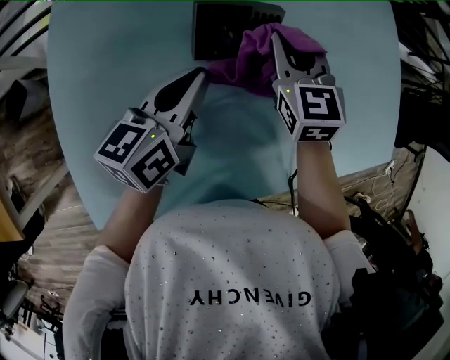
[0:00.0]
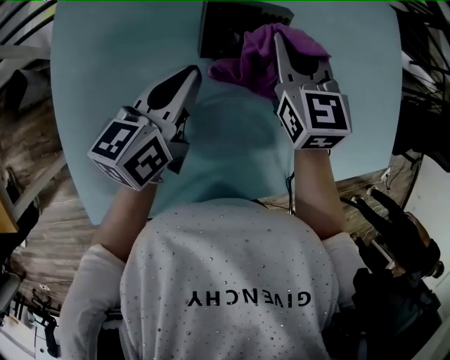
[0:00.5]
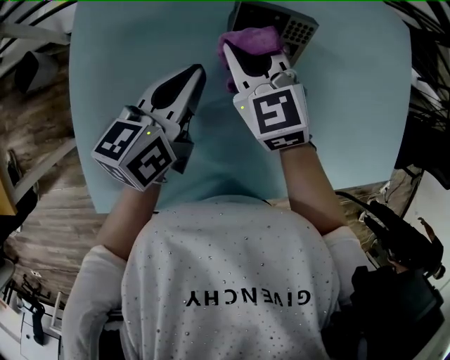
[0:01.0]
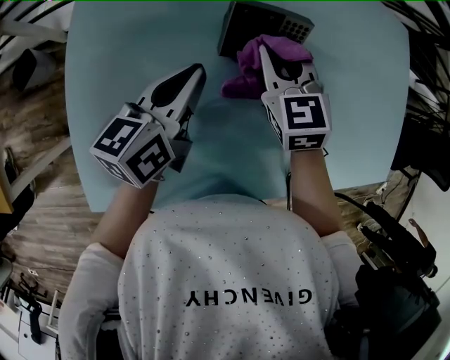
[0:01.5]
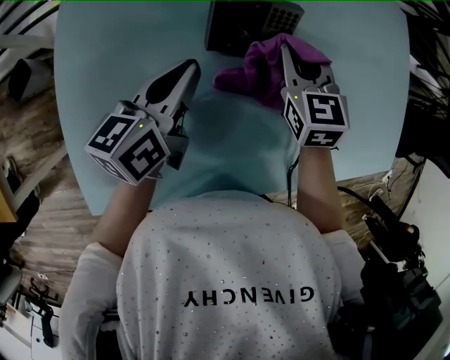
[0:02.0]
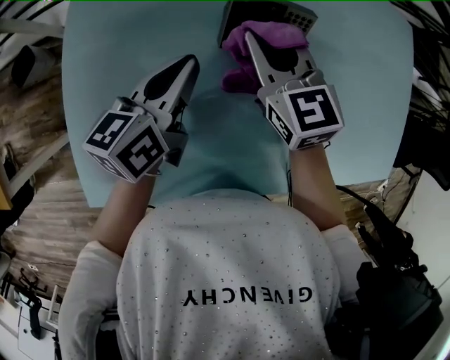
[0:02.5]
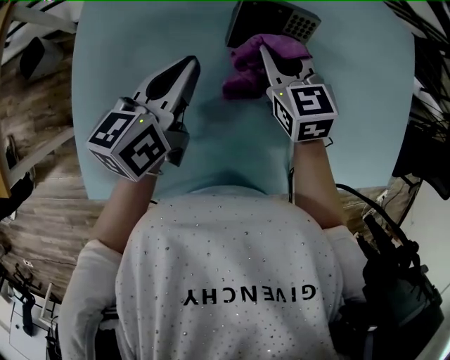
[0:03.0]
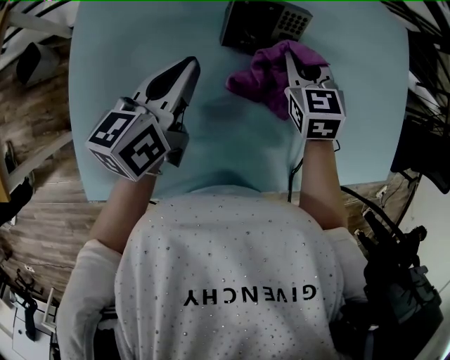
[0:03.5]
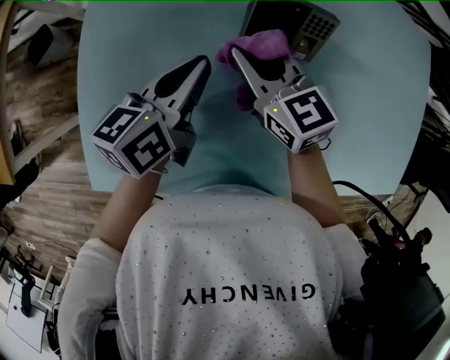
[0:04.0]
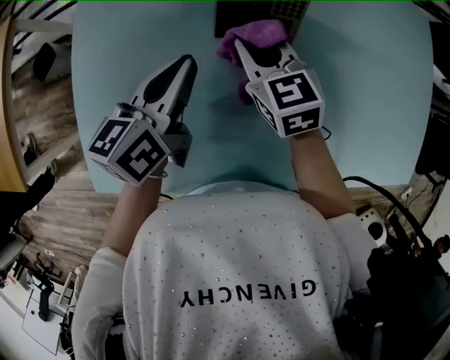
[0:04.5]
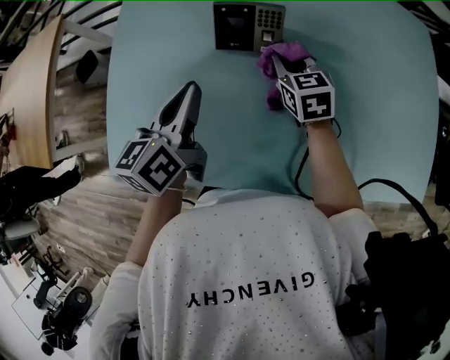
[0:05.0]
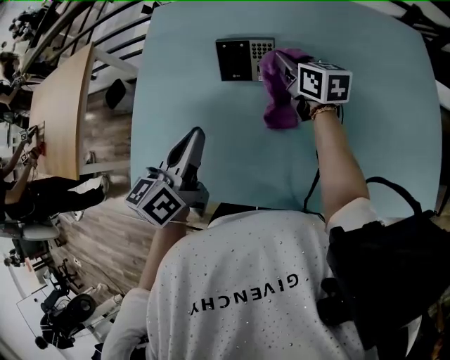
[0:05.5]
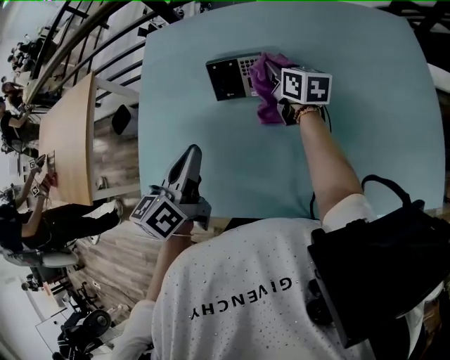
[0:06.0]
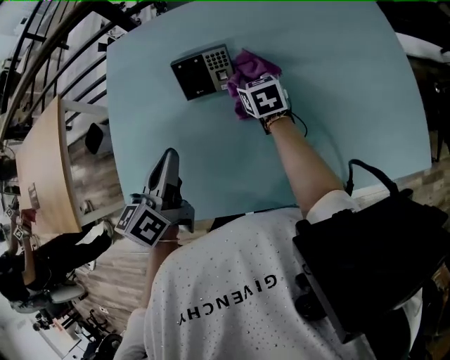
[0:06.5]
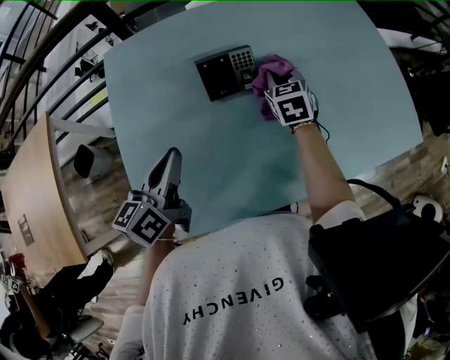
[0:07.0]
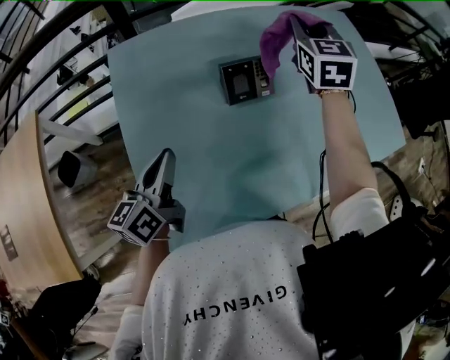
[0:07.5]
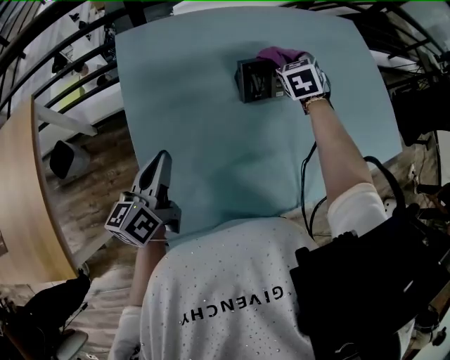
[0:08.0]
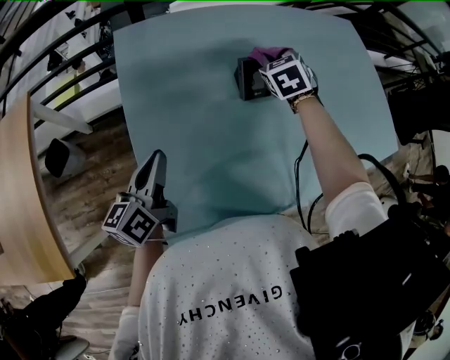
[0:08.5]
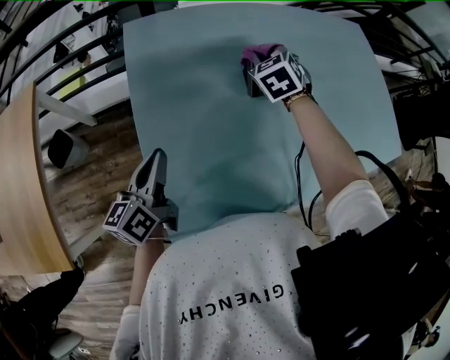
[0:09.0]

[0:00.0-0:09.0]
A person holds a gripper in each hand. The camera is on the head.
0:00.0 to 0:02.0: The right gripper reaches roughly 15 cm to the left, then returns.
0:02.0 to 0:04.5: The right gripper goes left and right, about 10 cm each way, reversing 2 times, and changes its angle by roughly 20 degrees.
0:04.5 to 0:07.0: The right gripper moves up and down over approximately 10 cm, changing direction 2 times, and changes its angle by about 30 degrees; the left gripper changes place by some 10 cm.
0:07.0 to 0:09.0: Both grippers move to the left, roughly 20 cm. The right gripper goes upward and returns, some 25 cm each way, and rotates about 20 degrees.

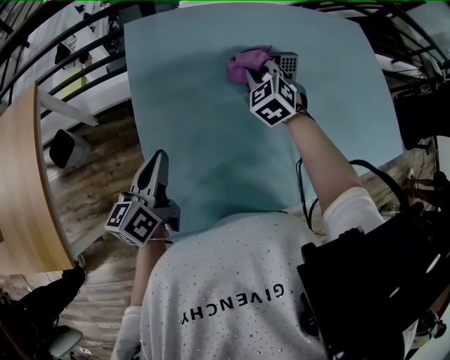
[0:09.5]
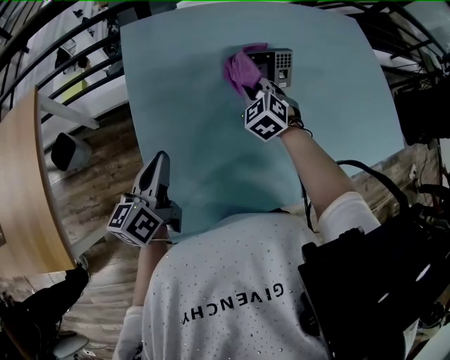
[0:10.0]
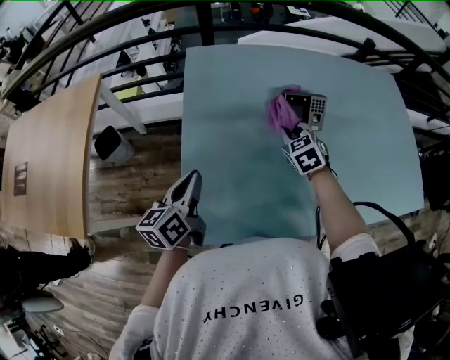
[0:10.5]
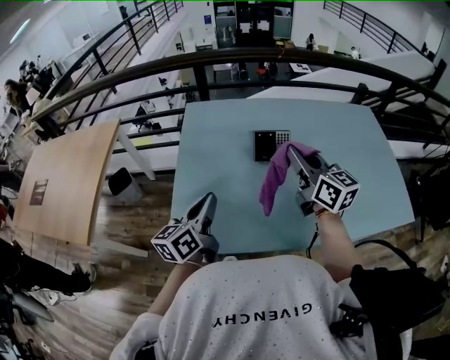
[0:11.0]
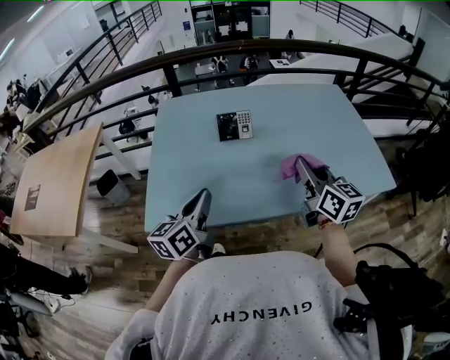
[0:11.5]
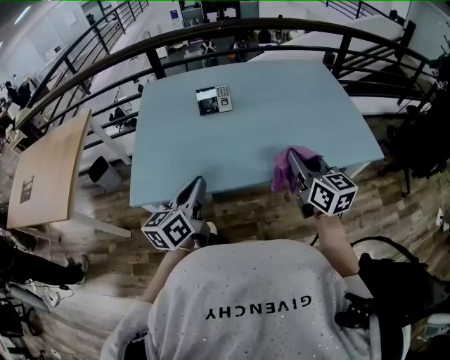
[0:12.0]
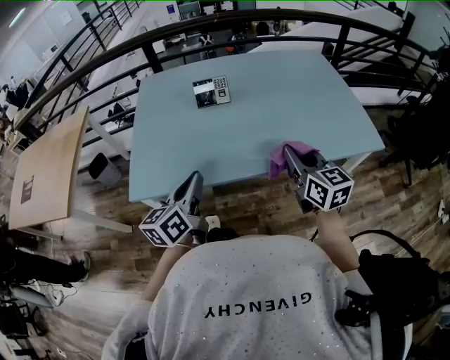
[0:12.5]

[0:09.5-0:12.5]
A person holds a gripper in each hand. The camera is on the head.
0:09.5 to 0:11.0: The right gripper is displaced upward, backward and to the right by about 30 cm, and angles its fingers upward, by some 40 degrees, while the left gripper heads to the right, upward and backward, covering some 20 cm.
0:11.0 to 0:12.5: Both grippers travel together backward and to the right, roughly 25 cm.

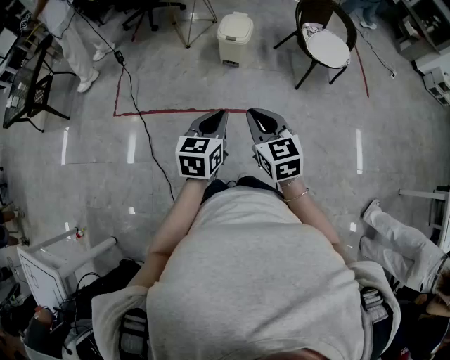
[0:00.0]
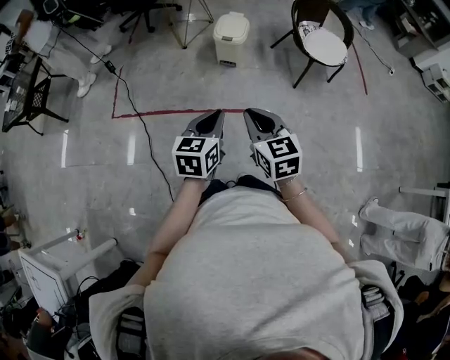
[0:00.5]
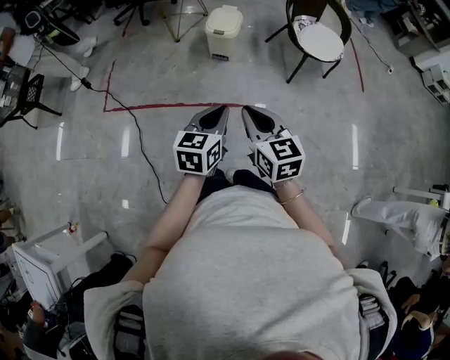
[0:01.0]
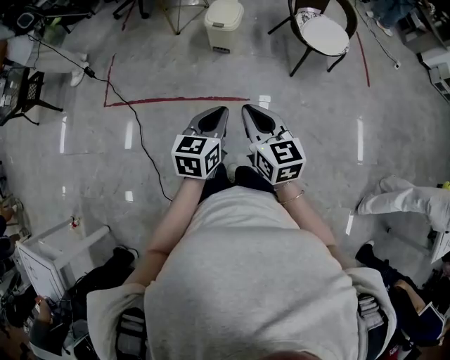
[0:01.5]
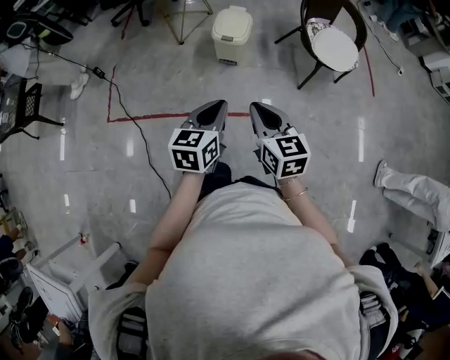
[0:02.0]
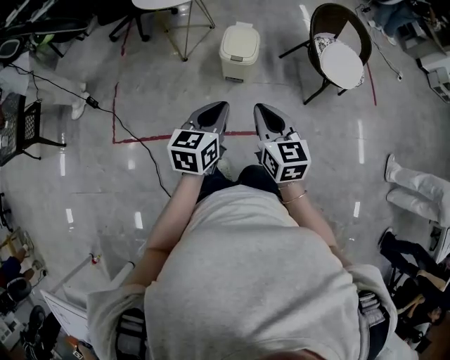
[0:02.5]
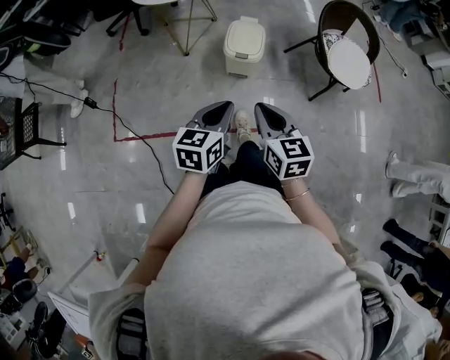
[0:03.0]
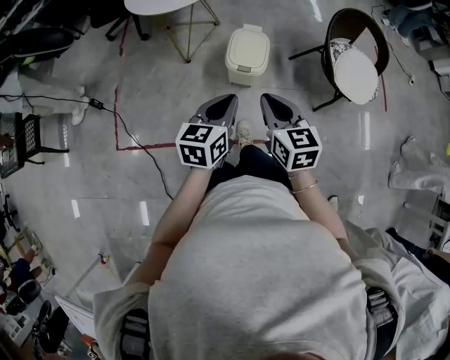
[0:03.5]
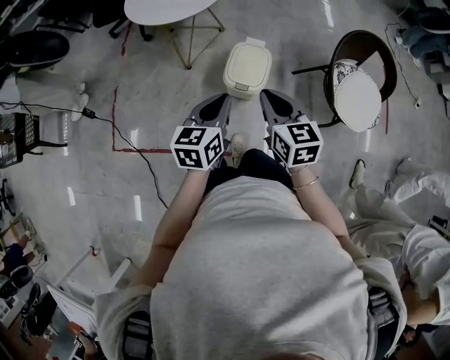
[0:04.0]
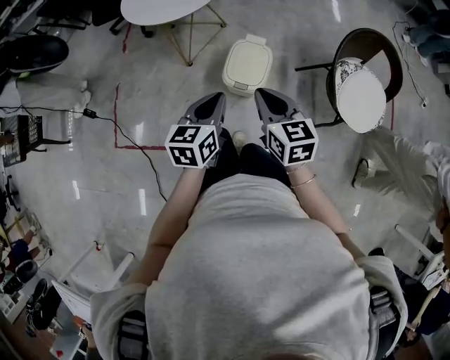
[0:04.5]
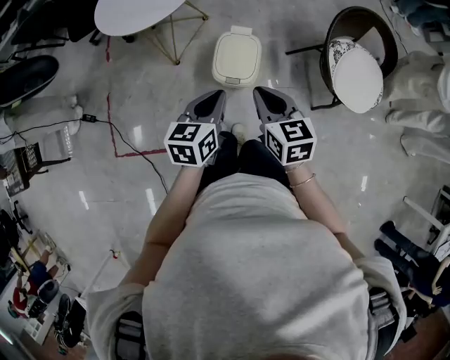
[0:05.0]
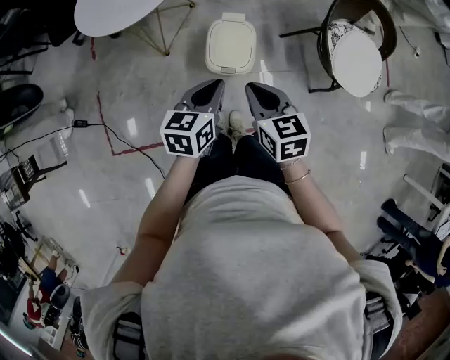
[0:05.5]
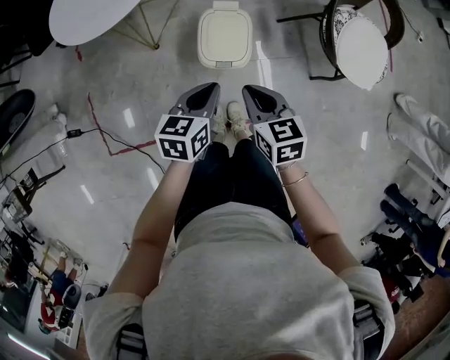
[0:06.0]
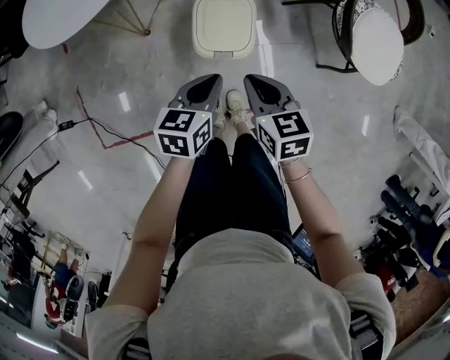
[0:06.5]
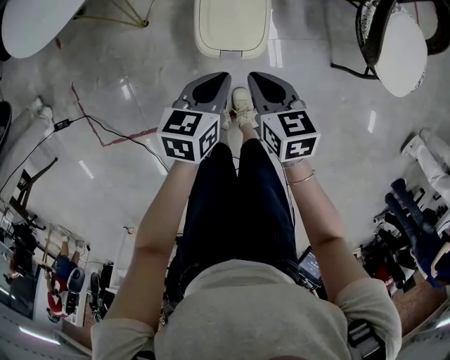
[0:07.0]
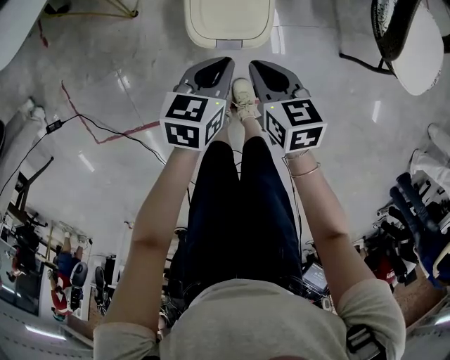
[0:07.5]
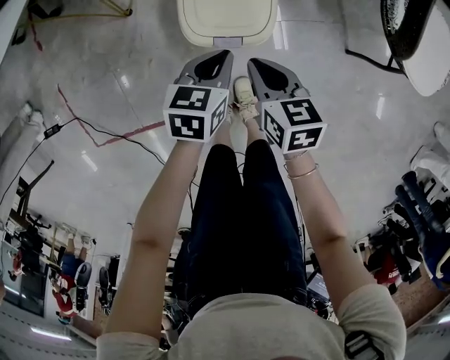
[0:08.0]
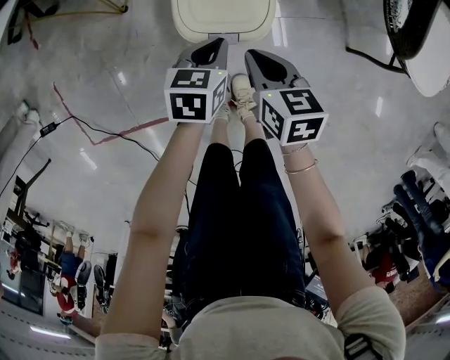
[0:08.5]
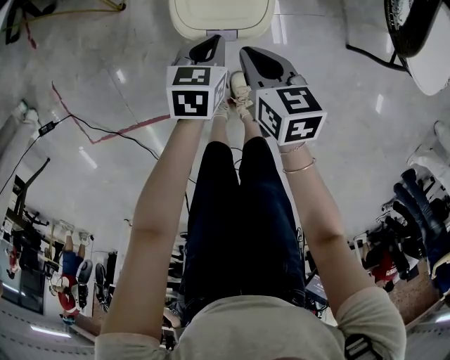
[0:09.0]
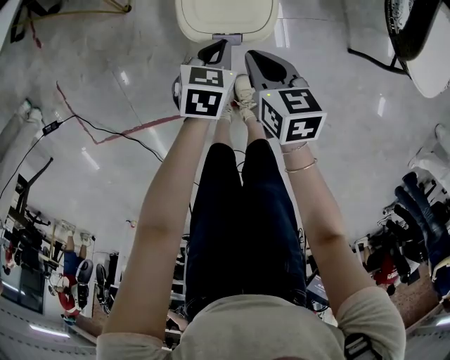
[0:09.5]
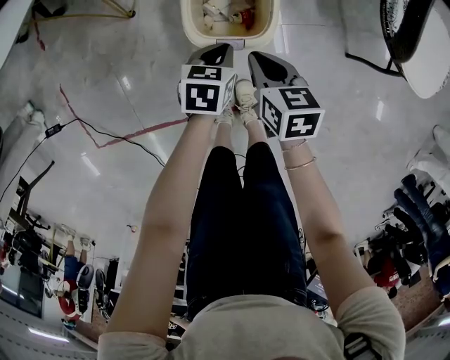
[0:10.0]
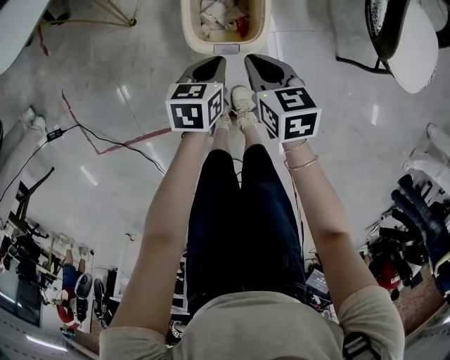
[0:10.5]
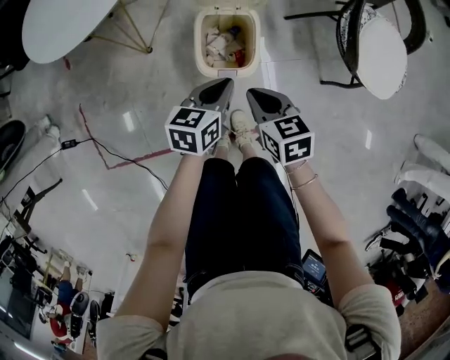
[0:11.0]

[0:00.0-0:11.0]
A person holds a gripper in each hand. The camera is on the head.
0:00.0 to 0:02.0: The grippers both shift forward by roughly 15 cm.
0:02.0 to 0:03.5: The grippers both shift forward by approximately 25 cm.
0:03.5 to 0:05.5: Both grippers move forward, approximately 20 cm.
0:05.5 to 0:07.5: The grippers both shift downward by roughly 30 cm.
0:07.5 to 0:09.0: The left gripper heads downward, covering some 10 cm.
0:09.0 to 0:11.0: Both grippers travel together upward, approximately 15 cm.

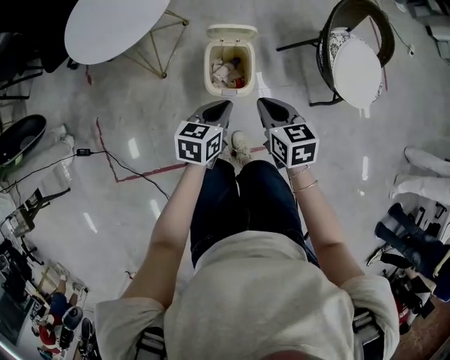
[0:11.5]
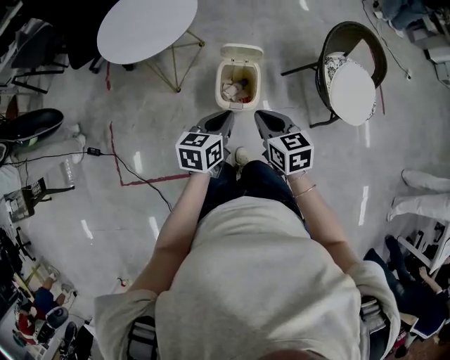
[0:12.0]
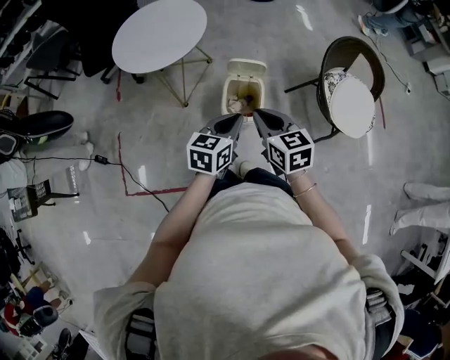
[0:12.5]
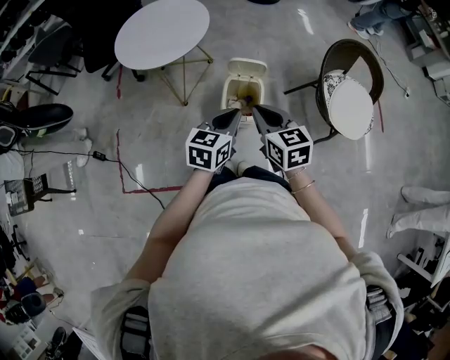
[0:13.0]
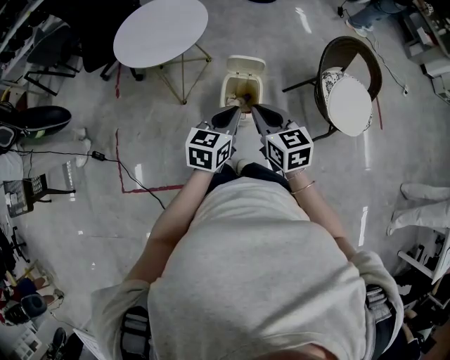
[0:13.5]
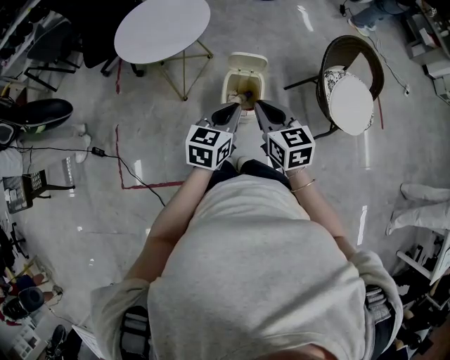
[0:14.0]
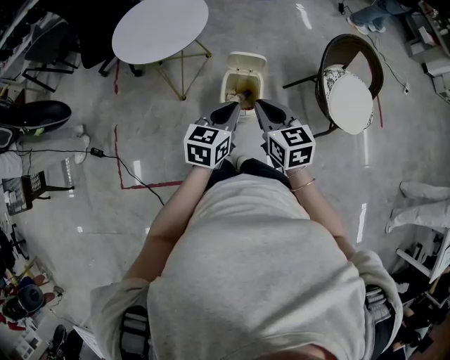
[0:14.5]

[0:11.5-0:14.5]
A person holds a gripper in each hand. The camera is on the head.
0:11.5 to 0:13.0: The grippers both shift upward by approximately 15 cm.
0:13.0 to 0:14.5: The grippers make only small movements.
